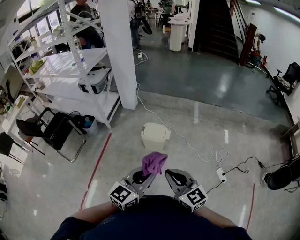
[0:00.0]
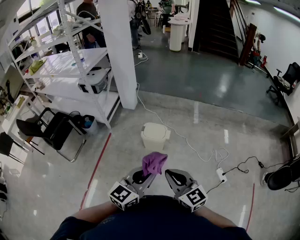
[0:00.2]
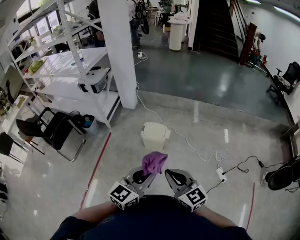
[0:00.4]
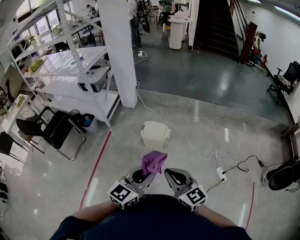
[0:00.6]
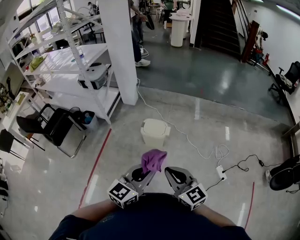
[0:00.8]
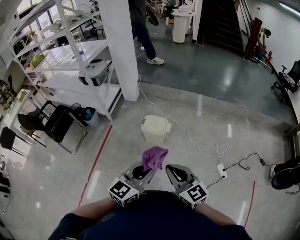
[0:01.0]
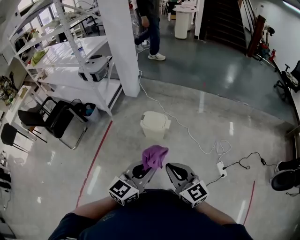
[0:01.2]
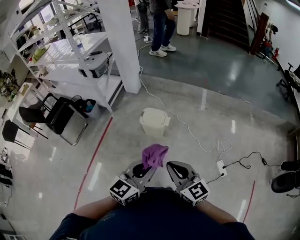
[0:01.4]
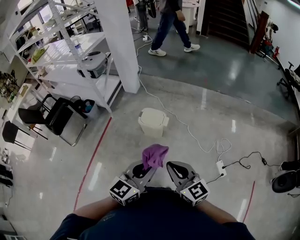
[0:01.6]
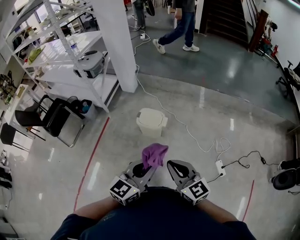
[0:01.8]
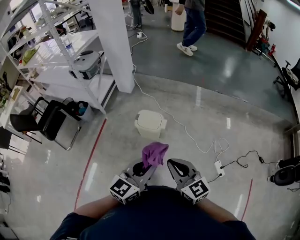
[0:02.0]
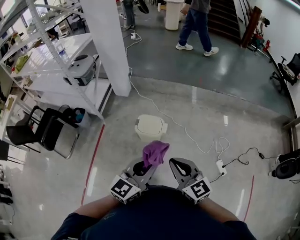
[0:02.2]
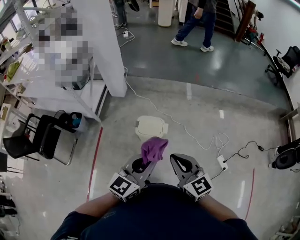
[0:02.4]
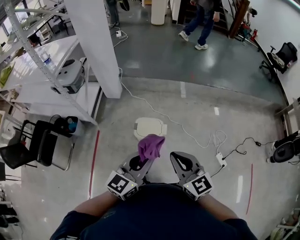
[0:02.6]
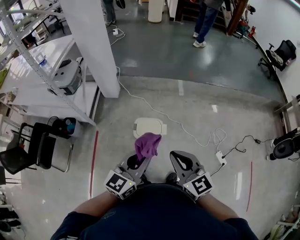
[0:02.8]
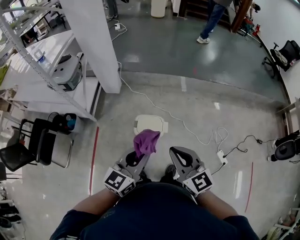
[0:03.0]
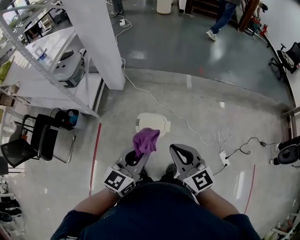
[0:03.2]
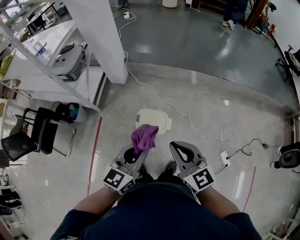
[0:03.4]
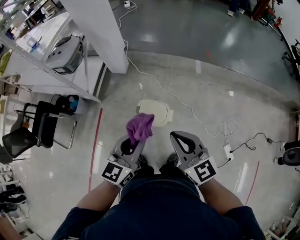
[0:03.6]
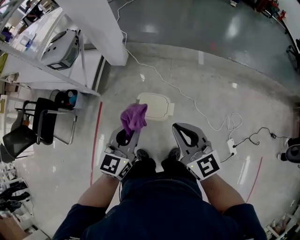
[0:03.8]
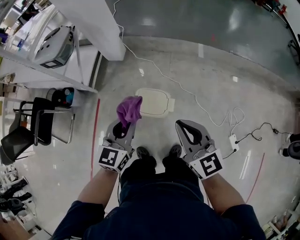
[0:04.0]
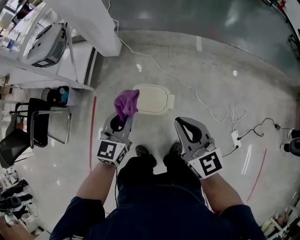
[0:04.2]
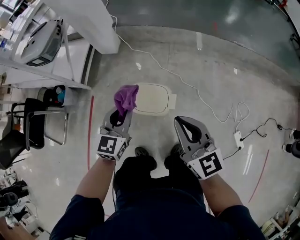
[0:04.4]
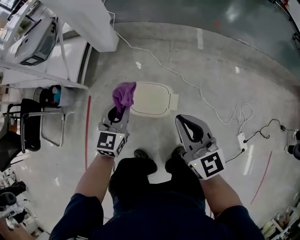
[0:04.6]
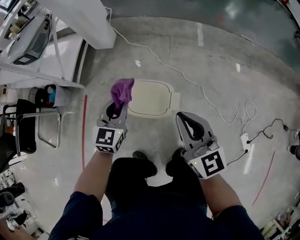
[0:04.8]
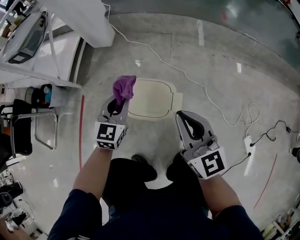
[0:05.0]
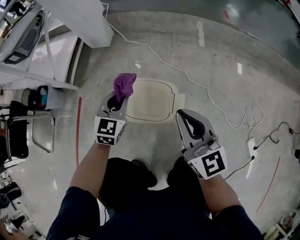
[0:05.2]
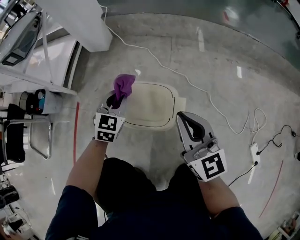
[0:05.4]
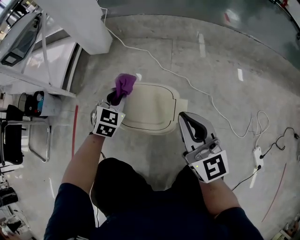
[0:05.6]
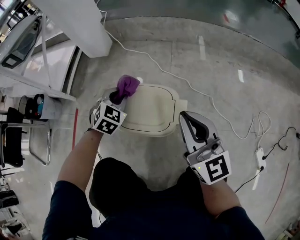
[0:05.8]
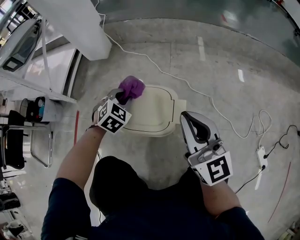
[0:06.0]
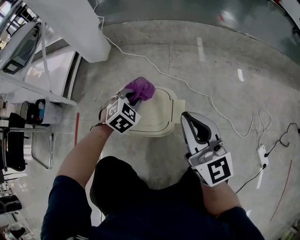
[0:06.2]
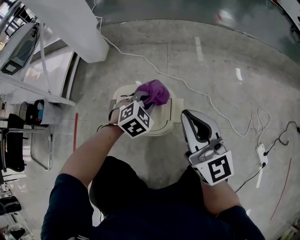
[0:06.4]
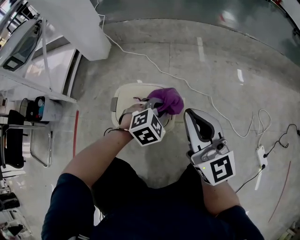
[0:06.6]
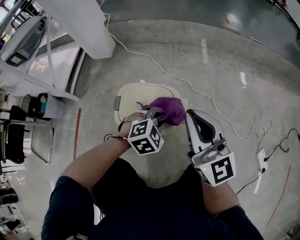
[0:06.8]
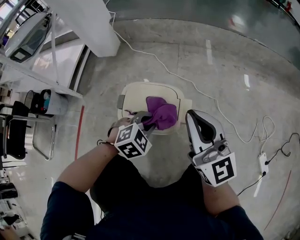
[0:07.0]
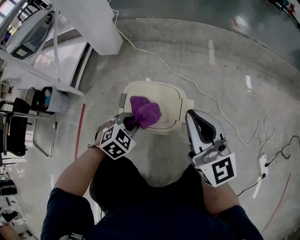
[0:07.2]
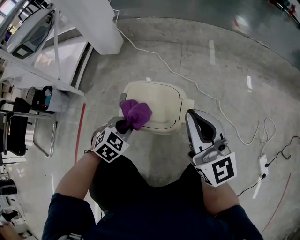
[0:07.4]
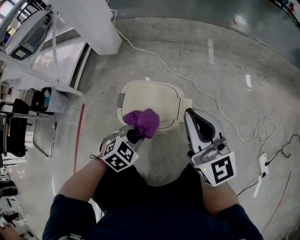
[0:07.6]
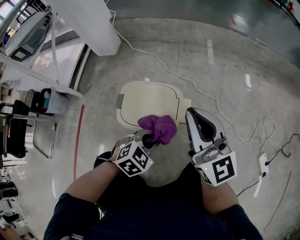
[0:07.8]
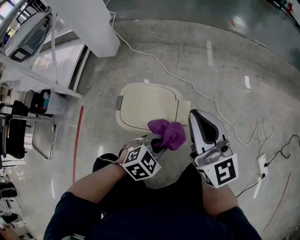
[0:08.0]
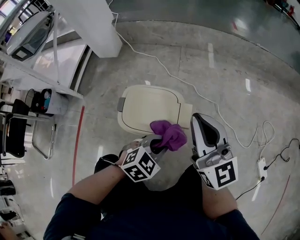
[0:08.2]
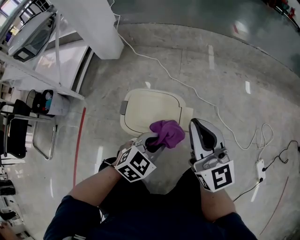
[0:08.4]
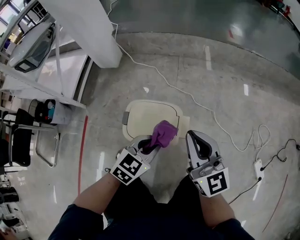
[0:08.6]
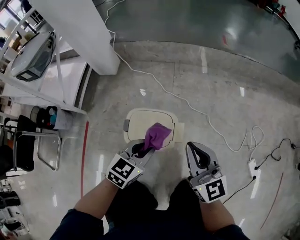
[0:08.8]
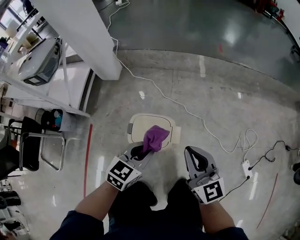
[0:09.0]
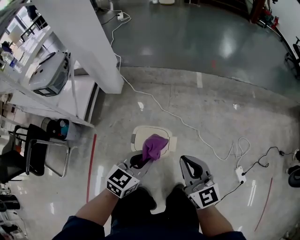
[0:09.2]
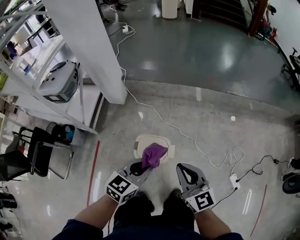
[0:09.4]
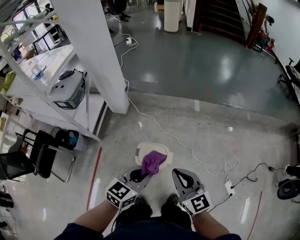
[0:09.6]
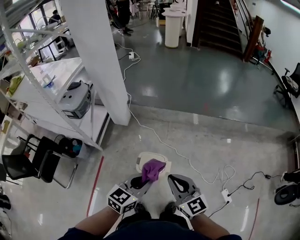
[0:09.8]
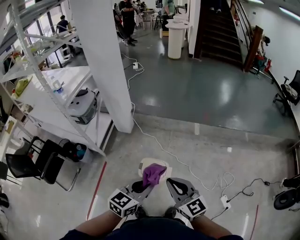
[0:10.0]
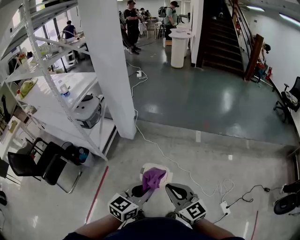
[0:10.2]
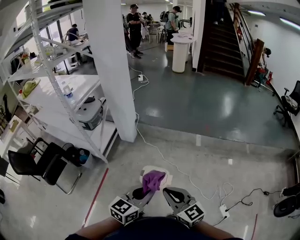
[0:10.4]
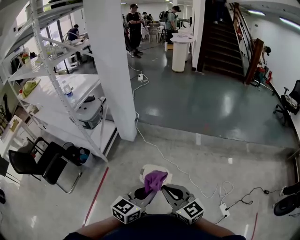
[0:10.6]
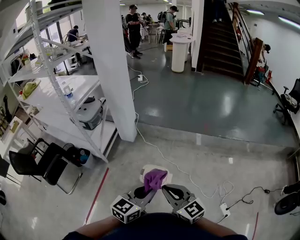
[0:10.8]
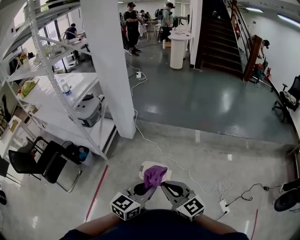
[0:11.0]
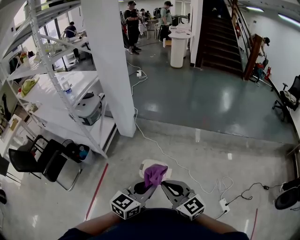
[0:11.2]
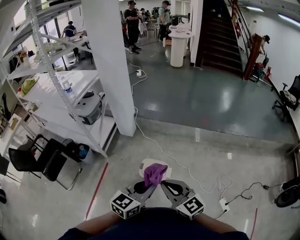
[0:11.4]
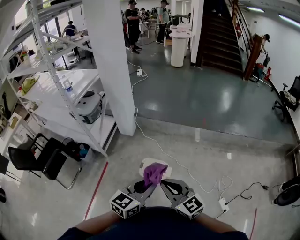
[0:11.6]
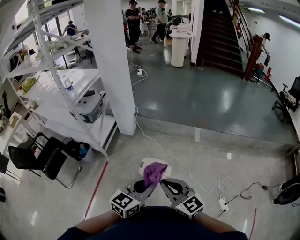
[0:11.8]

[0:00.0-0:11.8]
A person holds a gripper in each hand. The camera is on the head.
0:00.0 to 0:01.4: Both grippers travel together to the right, approximately 10 cm.
0:01.4 to 0:03.0: Both grippers travel together forward and to the left, roughly 35 cm.
0:03.0 to 0:04.4: Both grippers travel together downward and forward, about 30 cm. The left gripper turns by about 30 degrees.
0:04.4 to 0:06.0: Both grippers travel together downward, approximately 35 cm. The left gripper rotates roughly 50 degrees.
0:06.0 to 0:07.4: The left gripper travels backward by some 15 cm, and travels to the right and back again, roughly 15 cm each way.
0:07.4 to 0:08.8: The left gripper shifts some 20 cm upward and to the right, and turns by roughly 30 degrees, while the right gripper shifts approximately 5 cm upward.
0:08.8 to 0:10.4: The left gripper goes some 50 cm upward, and rotates about 20 degrees; the right gripper shifts approximately 50 cm upward and backward, and changes its angle by approximately 20 degrees.
0:10.4 to 0:11.8: The grippers move only a little.

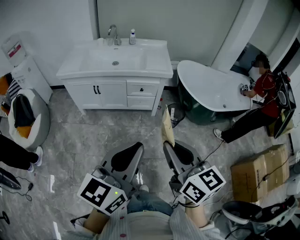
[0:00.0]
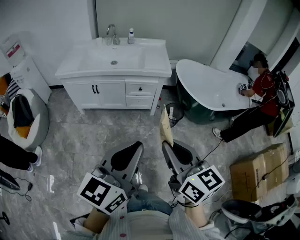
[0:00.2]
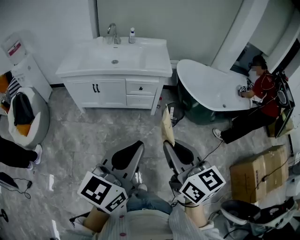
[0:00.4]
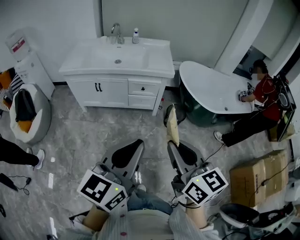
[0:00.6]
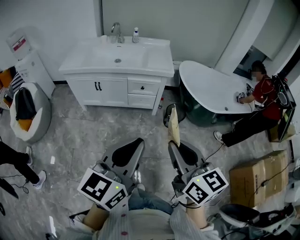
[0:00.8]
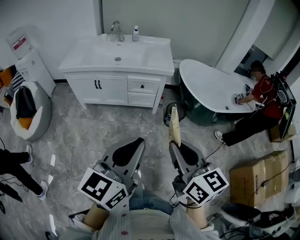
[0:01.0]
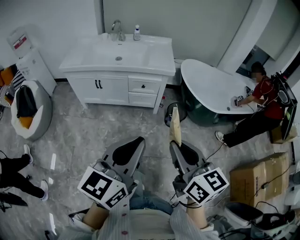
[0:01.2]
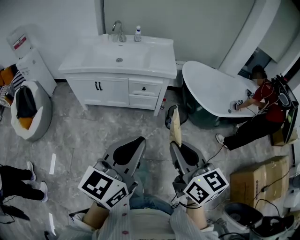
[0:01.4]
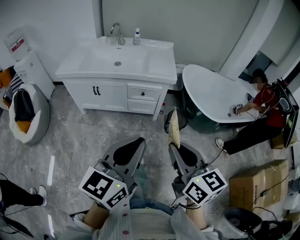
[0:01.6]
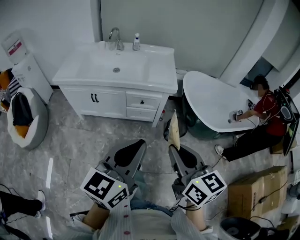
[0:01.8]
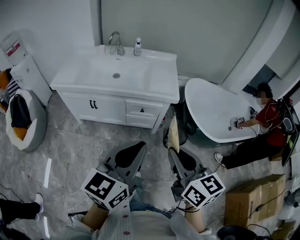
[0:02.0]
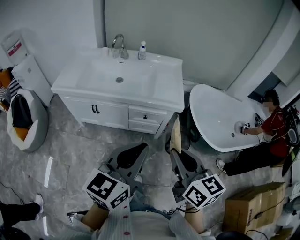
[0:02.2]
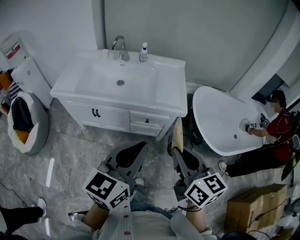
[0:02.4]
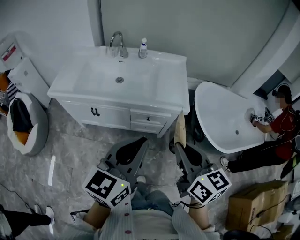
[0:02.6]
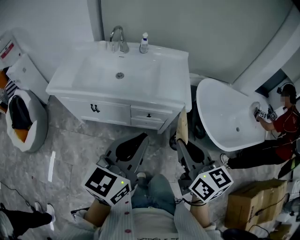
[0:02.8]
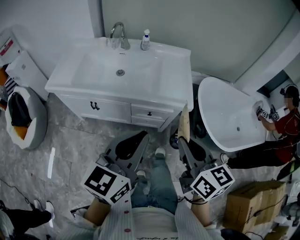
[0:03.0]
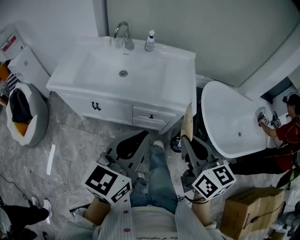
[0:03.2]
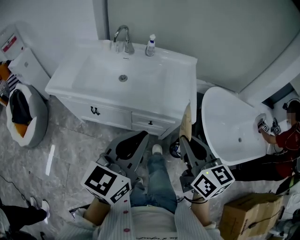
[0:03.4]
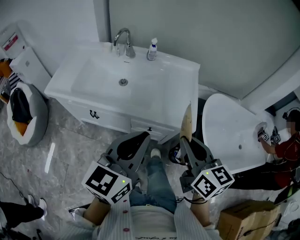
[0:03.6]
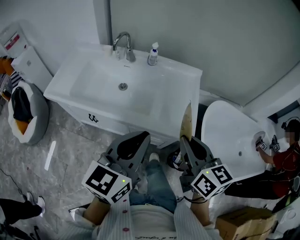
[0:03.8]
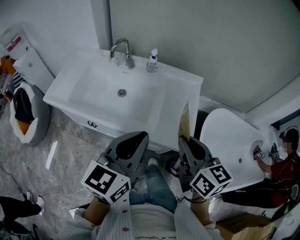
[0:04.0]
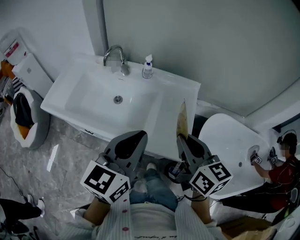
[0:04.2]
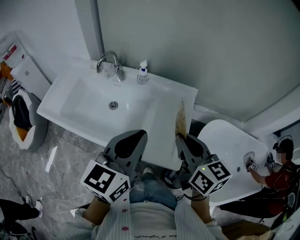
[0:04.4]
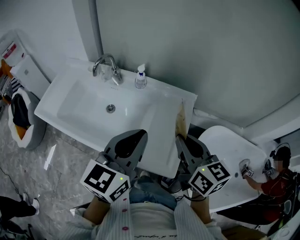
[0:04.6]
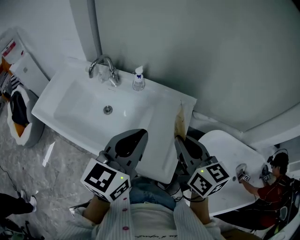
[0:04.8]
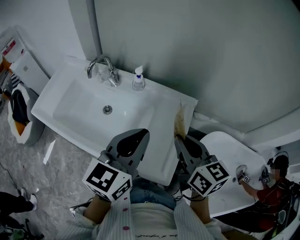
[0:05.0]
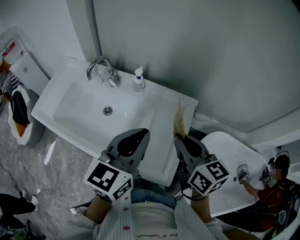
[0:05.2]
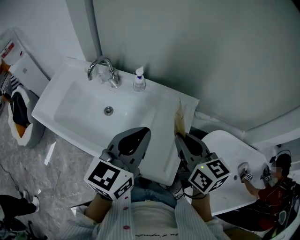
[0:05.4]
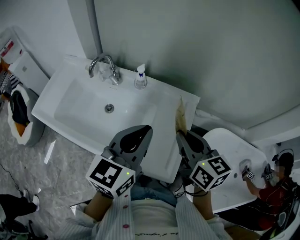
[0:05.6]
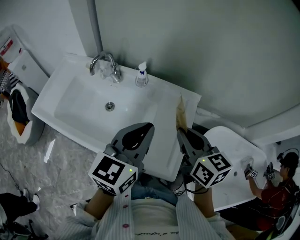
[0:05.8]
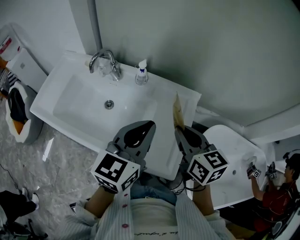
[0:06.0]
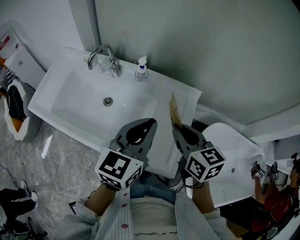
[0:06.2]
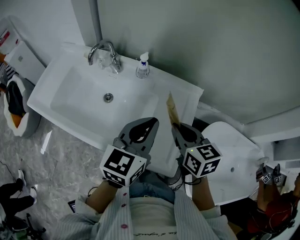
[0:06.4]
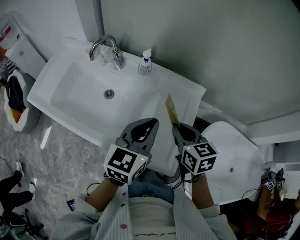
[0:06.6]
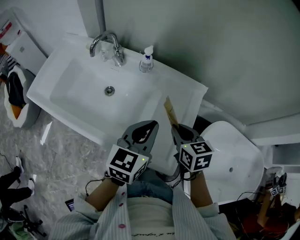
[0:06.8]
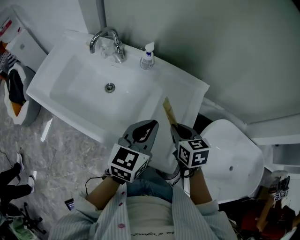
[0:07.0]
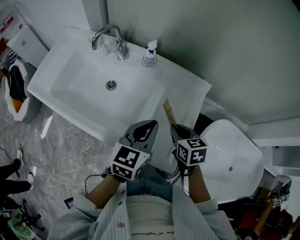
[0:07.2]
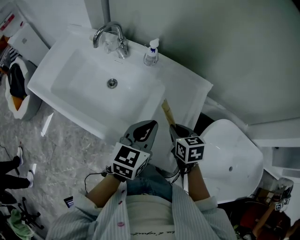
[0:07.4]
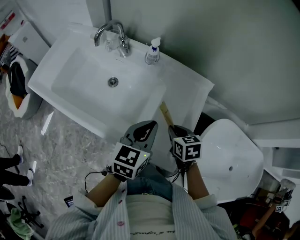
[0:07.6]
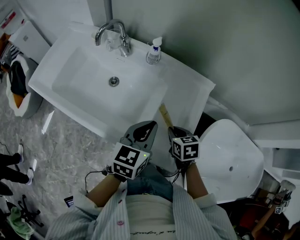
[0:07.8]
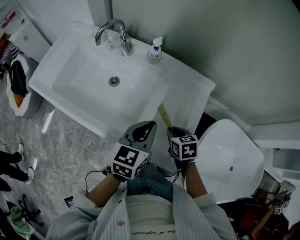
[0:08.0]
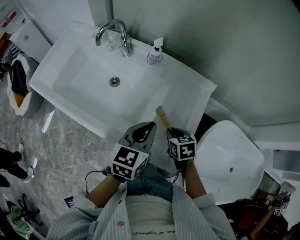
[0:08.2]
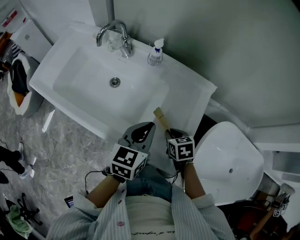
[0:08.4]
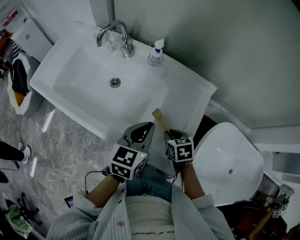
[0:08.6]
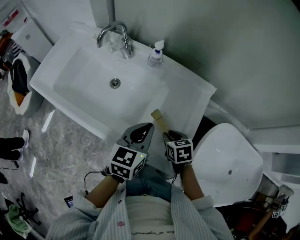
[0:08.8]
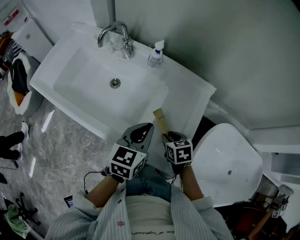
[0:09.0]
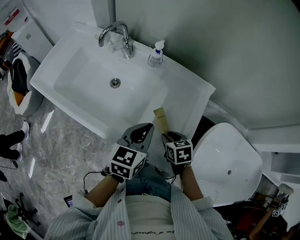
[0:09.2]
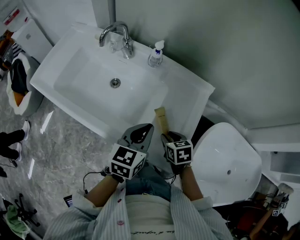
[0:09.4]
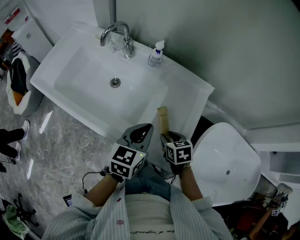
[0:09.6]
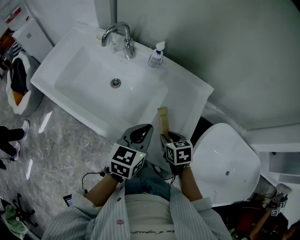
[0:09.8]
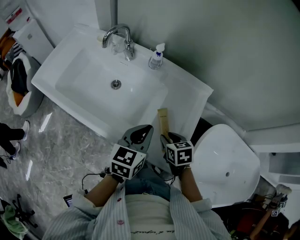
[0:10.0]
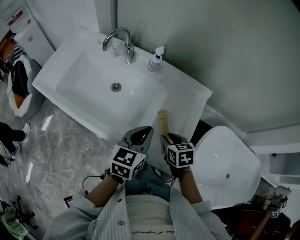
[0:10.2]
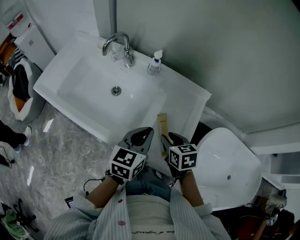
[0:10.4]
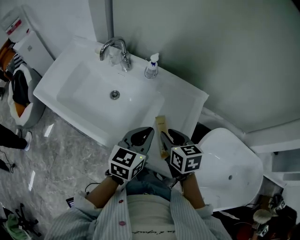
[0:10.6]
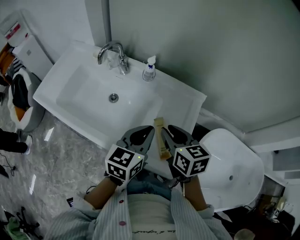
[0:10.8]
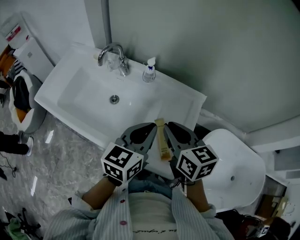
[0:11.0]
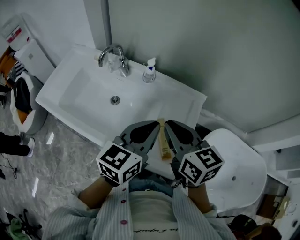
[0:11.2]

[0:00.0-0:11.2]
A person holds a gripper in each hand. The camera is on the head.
0:00.0 to 0:01.6: Both grippers travel together forward, about 10 cm.
0:01.6 to 0:03.2: Both grippers move forward, approximately 30 cm.
0:03.2 to 0:04.8: Both grippers move forward, approximately 35 cm.
0:04.8 to 0:06.4: Both grippers move downward, some 5 cm.
0:06.4 to 0:08.0: The right gripper heads downward, covering some 20 cm, and changes its angle by roughly 30 degrees. Meanwhile the left gripper goes approximately 10 cm downward.
0:08.0 to 0:09.6: The right gripper opens up.
0:09.6 to 0:11.2: The right gripper shifts roughly 25 cm upward, tilts its fingers approximately 40 degrees upward, and closes. The left gripper is displaced upward by roughly 15 cm.

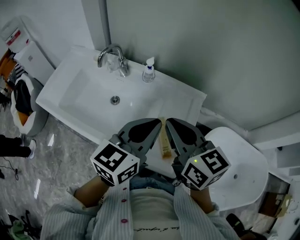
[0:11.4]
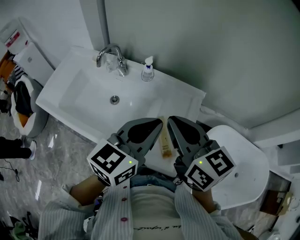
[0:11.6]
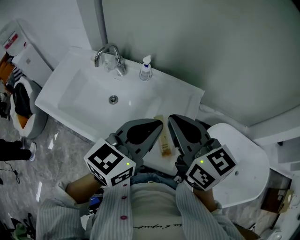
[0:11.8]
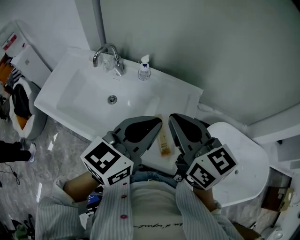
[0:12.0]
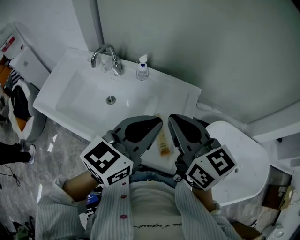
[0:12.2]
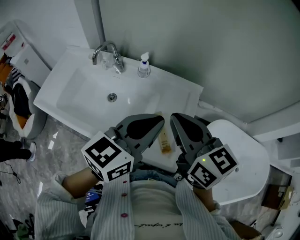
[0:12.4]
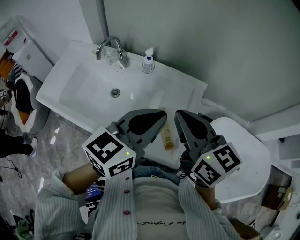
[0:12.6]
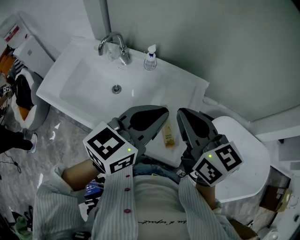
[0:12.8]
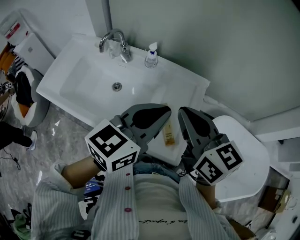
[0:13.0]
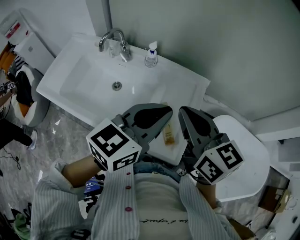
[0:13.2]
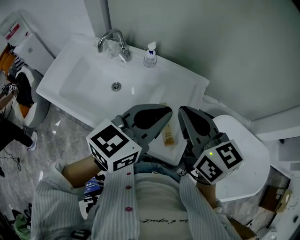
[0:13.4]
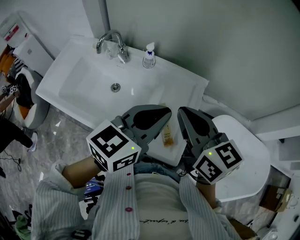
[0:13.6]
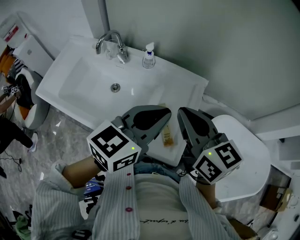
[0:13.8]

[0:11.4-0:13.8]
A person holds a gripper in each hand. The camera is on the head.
0:11.4 to 0:13.8: The grippers make only small movements.
